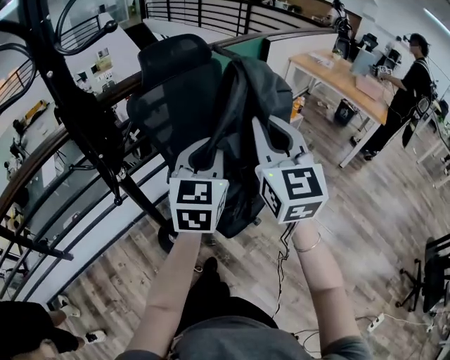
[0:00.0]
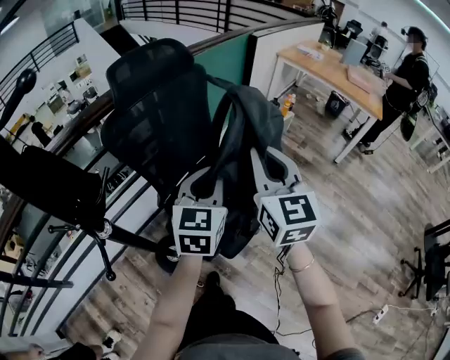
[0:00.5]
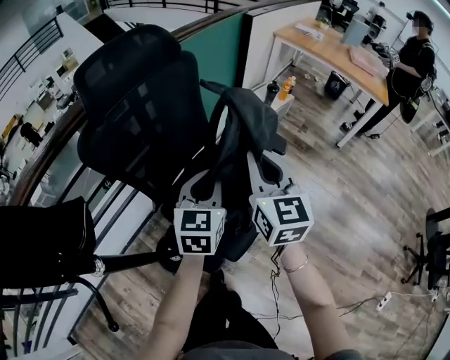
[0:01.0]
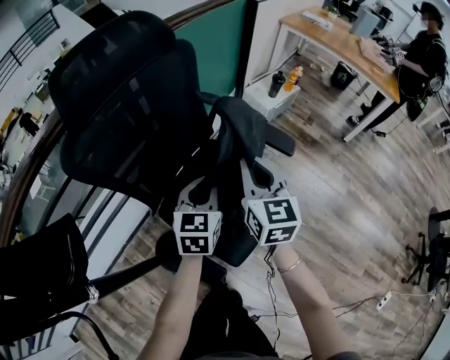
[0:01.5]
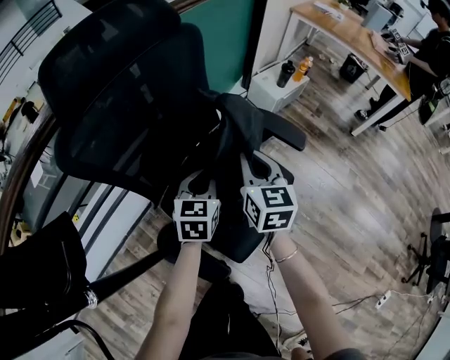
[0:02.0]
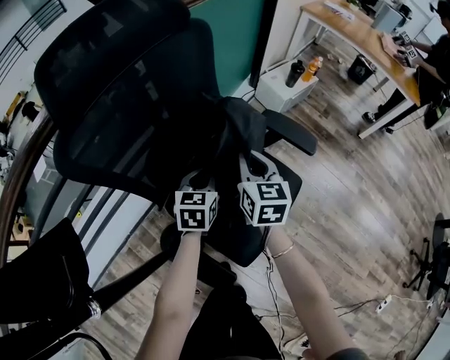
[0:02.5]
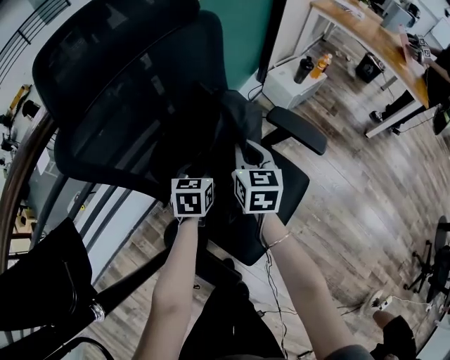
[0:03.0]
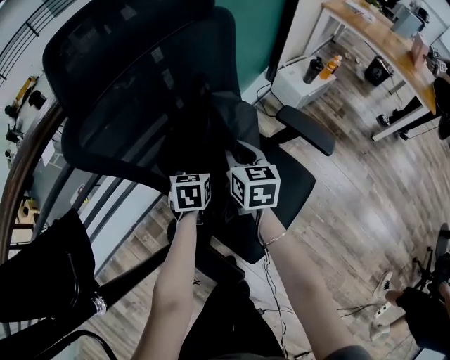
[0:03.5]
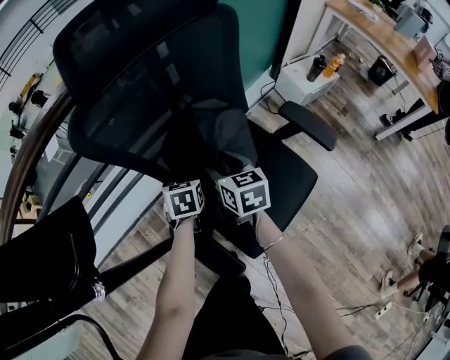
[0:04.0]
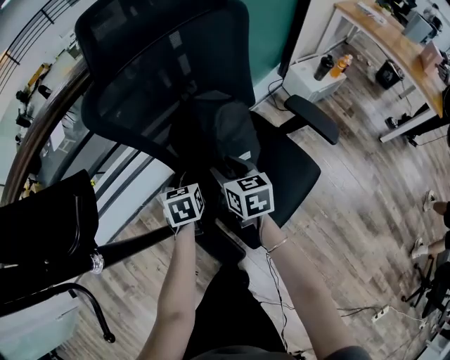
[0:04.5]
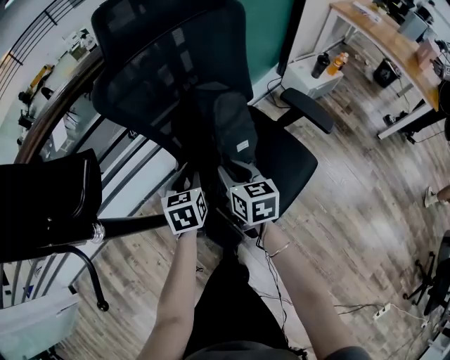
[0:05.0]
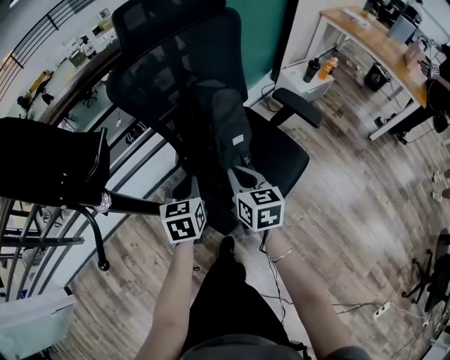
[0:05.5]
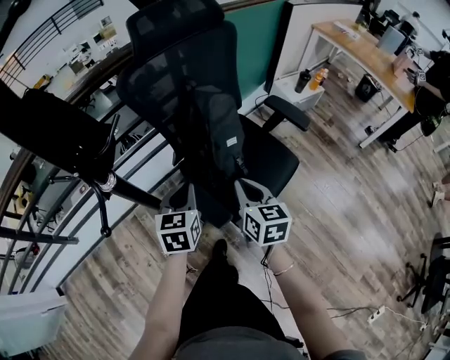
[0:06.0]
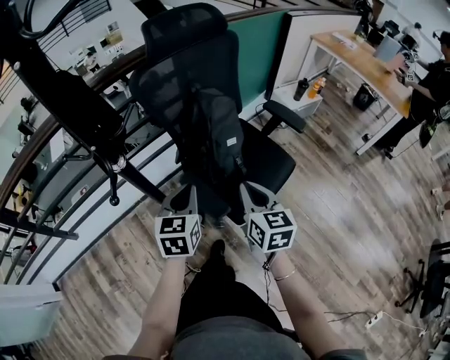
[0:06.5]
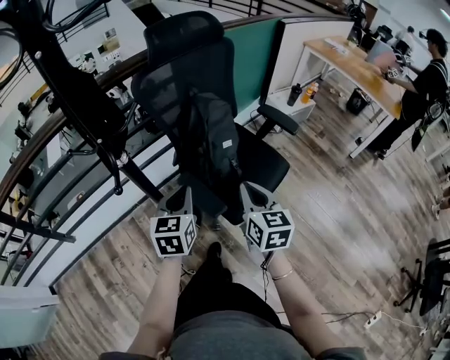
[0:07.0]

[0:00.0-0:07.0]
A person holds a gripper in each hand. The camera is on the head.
0.0 to 2.0 s: The two grippers go approximately 40 cm downward and forward. The right gripper swivels roughly 30 degrees; the left gripper turns by approximately 30 degrees.
2.0 to 3.5 s: Both grippers travel together to the left, downward and forward, about 15 cm. The left gripper swivels roughly 20 degrees.
3.5 to 5.0 s: The two grippers go approximately 15 cm backward and to the left. The right gripper opens, then closes once more.
5.0 to 7.0 s: The grippers both shift backward and upward by about 25 cm.

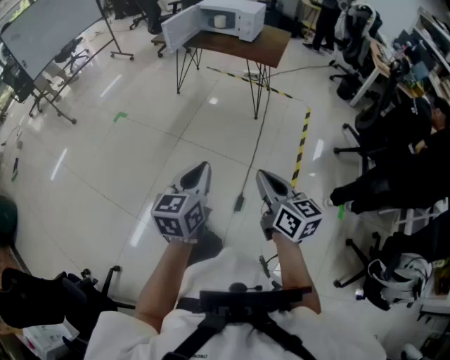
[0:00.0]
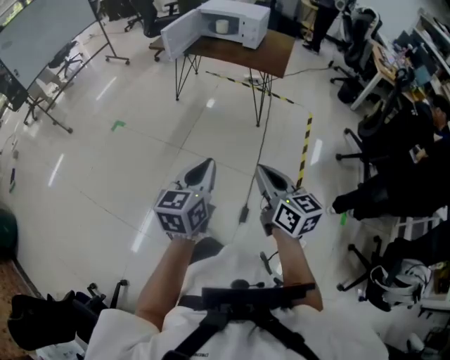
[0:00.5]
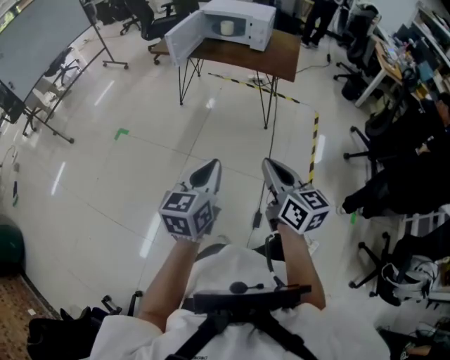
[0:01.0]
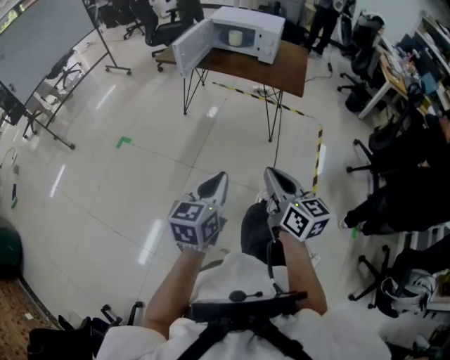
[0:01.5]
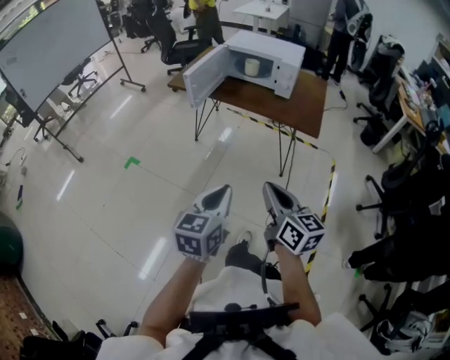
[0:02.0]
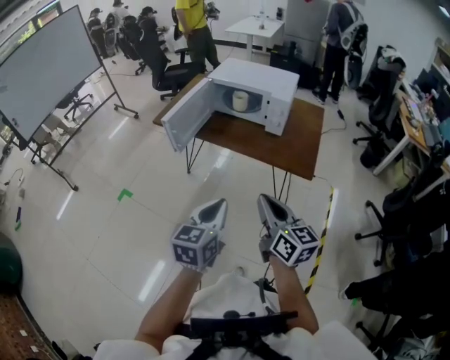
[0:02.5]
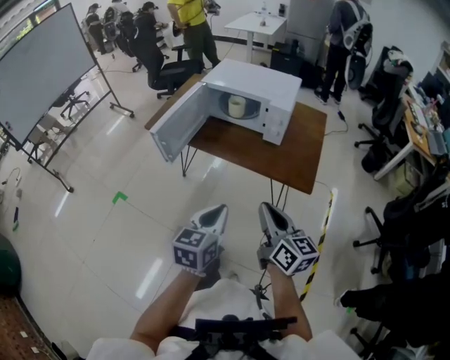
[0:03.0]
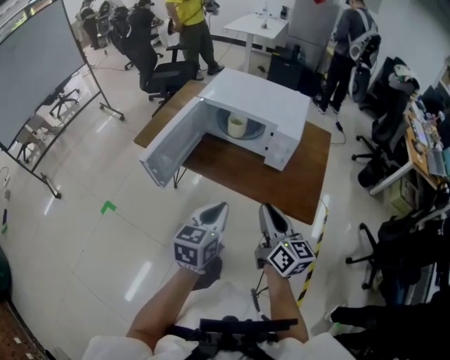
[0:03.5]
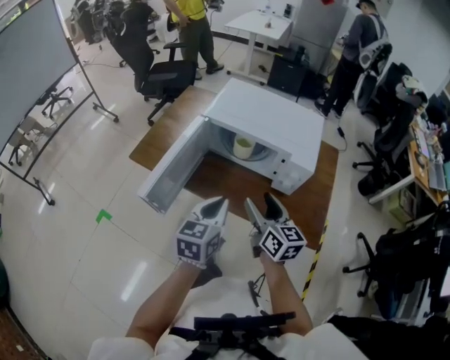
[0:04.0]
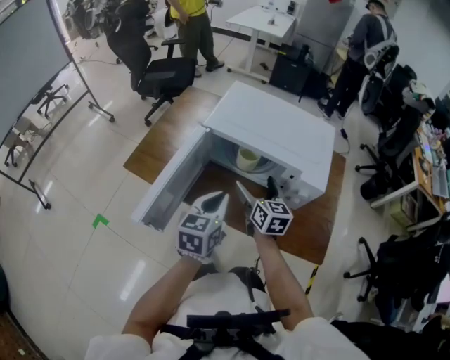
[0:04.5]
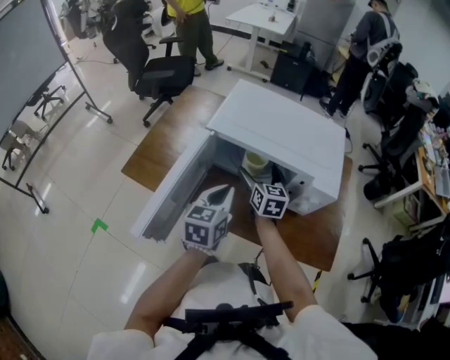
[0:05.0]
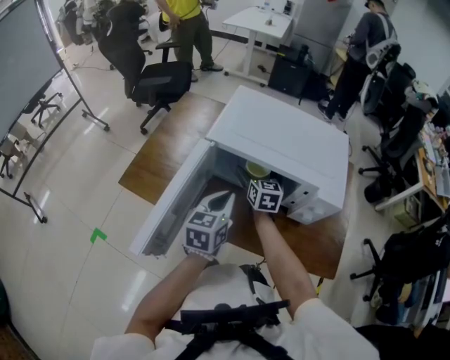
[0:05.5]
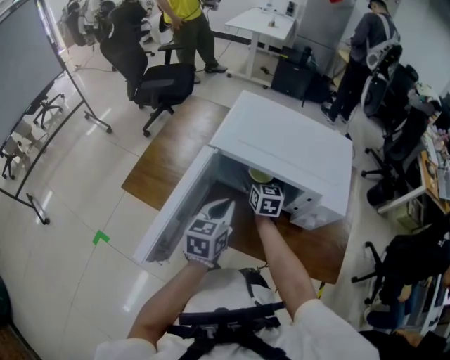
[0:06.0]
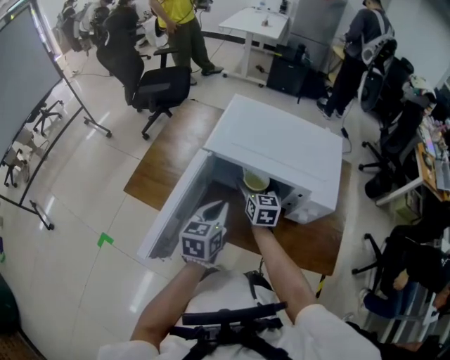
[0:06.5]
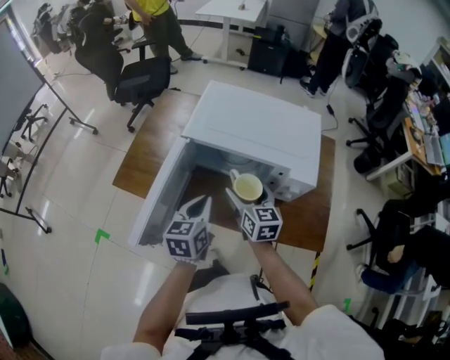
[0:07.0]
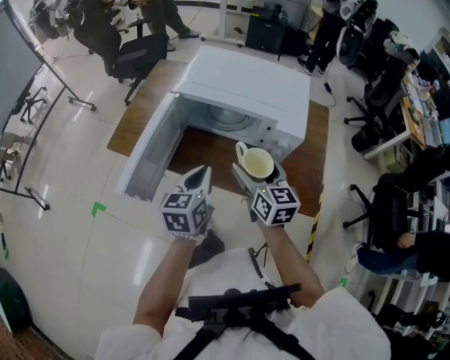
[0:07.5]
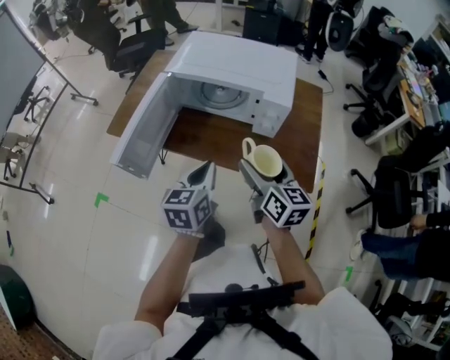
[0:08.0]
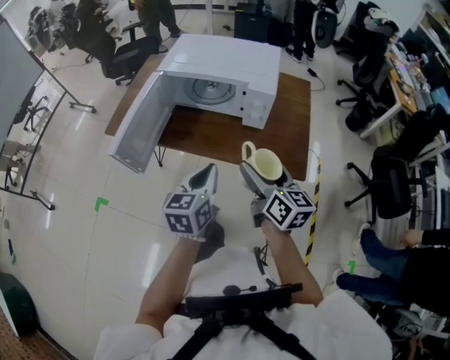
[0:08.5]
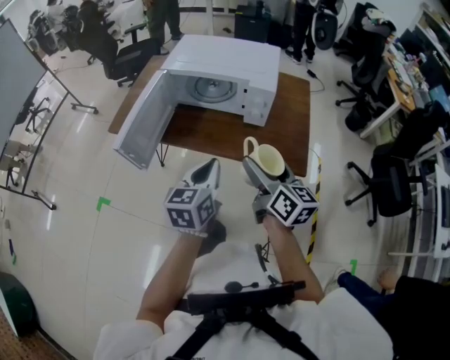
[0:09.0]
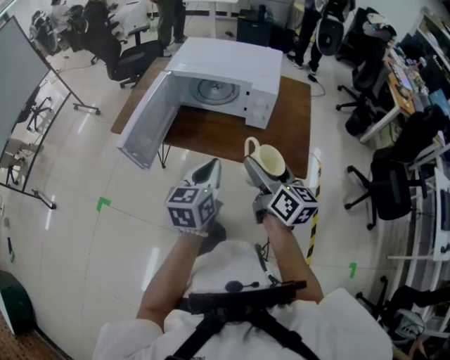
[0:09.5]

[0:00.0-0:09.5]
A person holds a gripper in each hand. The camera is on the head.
0.0 to 2.0 s: The grippers both shift forward by some 40 cm.
2.0 to 4.0 s: The pair of grippers is taken forward, approximately 60 cm. The right gripper opens.
4.0 to 5.5 s: The right gripper shifts some 30 cm forward and downward, changes its angle by about 20 degrees, and opens; the left gripper moves forward and downward, some 20 cm.
5.5 to 7.5 s: The right gripper travels backward, upward and to the right by roughly 30 cm. Meanwhile the left gripper moves backward and upward, roughly 15 cm.
7.5 to 9.5 s: Both grippers move backward and to the right, about 20 cm. The right gripper swivels about 20 degrees.

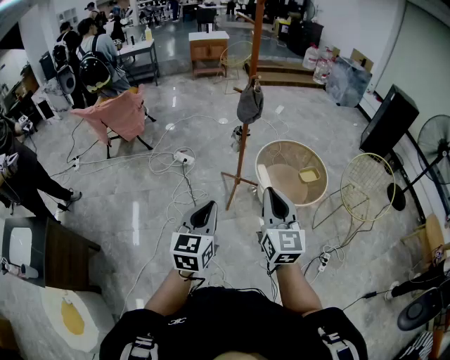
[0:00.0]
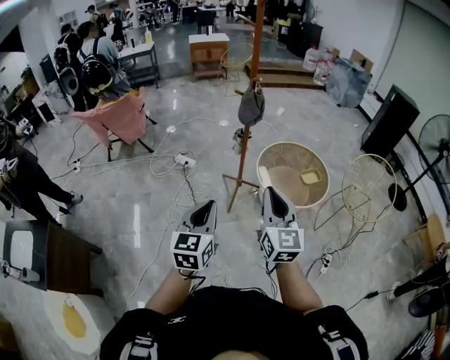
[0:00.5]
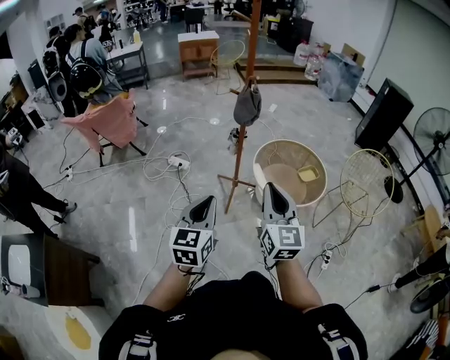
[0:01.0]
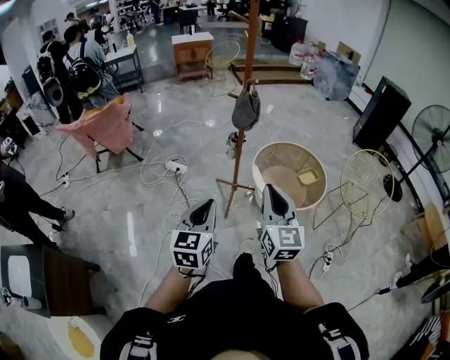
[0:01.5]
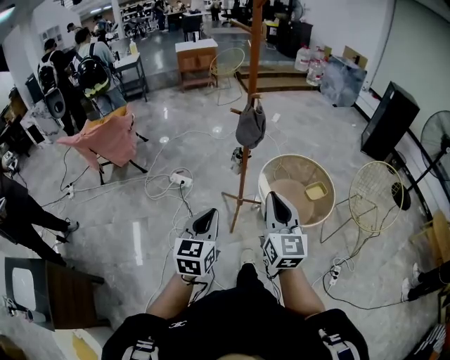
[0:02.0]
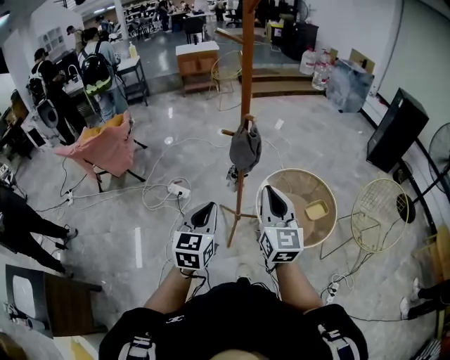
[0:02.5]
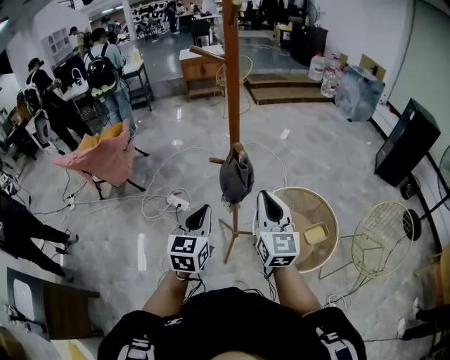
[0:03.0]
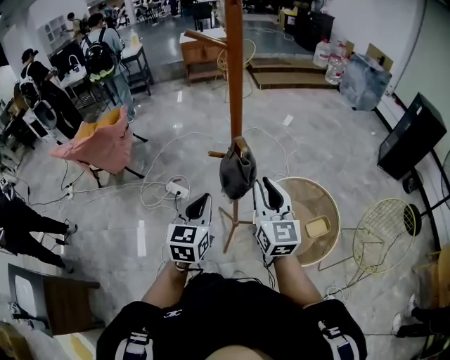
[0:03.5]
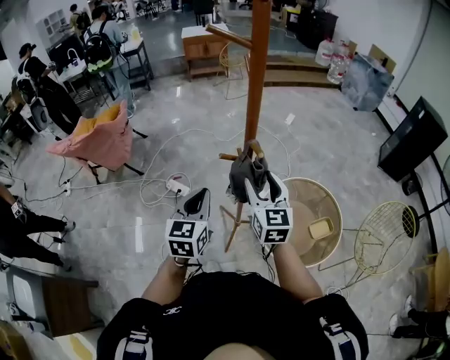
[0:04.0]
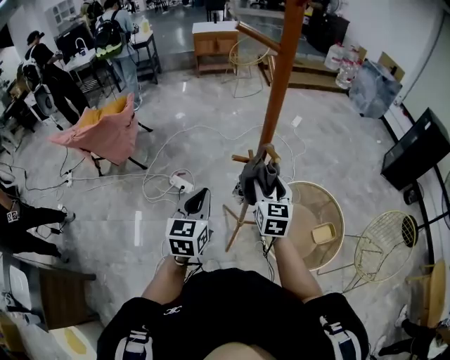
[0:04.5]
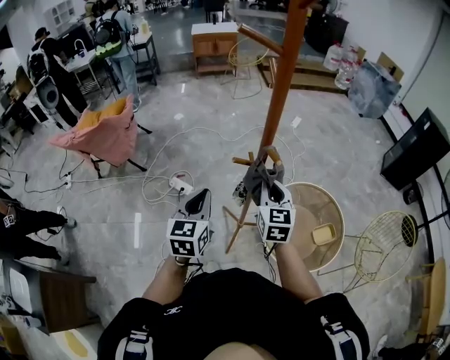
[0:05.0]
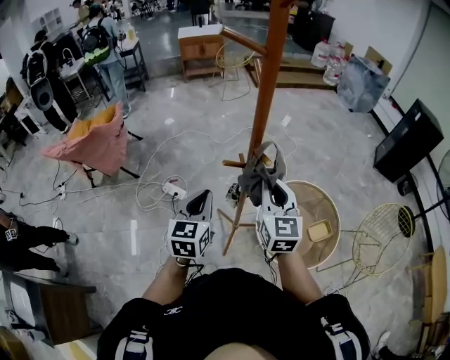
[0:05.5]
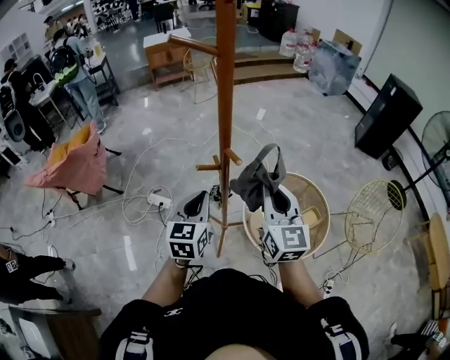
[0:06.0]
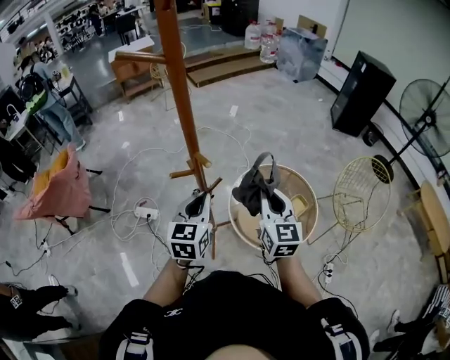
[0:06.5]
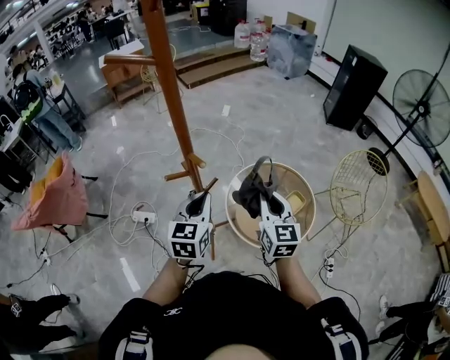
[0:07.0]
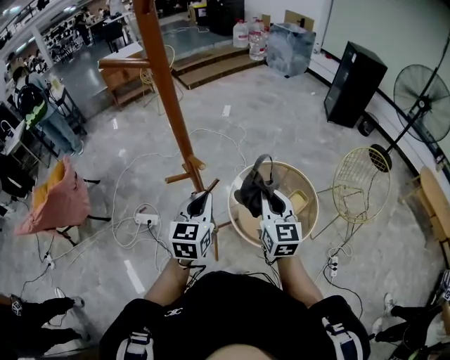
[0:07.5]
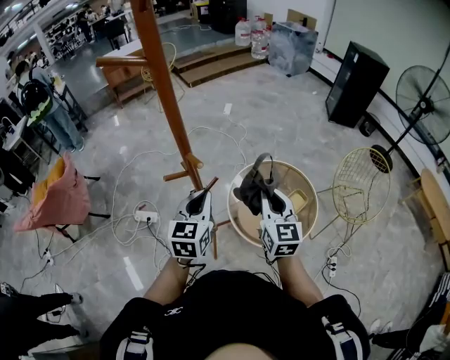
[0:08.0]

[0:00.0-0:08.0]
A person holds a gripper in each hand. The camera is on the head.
0.0 to 2.0 s: The two grippers go approximately 20 cm forward.
2.0 to 4.0 s: The pair of grippers is taken forward, some 40 cm. The right gripper opens up.
4.0 to 6.0 s: The left gripper ends up roughly 5 cm from where it was, while the right gripper shifts about 10 cm to the right and upward, and closes its fingers.
6.0 to 8.0 s: The left gripper shifts about 10 cm to the right, while the right gripper moves to the right and downward, roughly 15 cm.

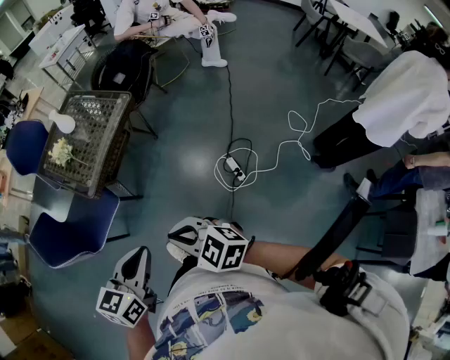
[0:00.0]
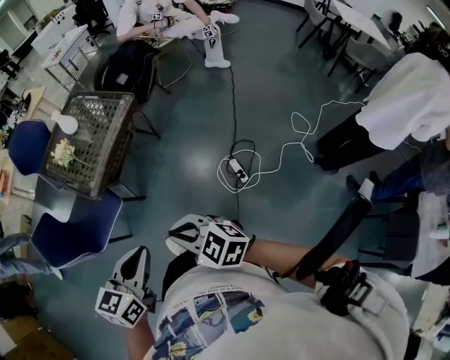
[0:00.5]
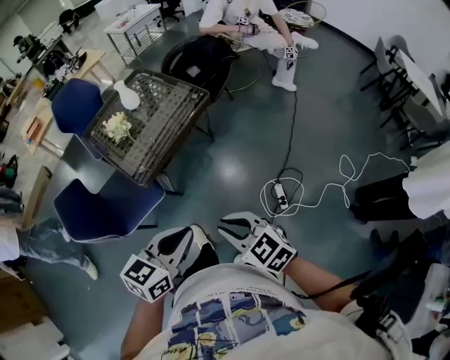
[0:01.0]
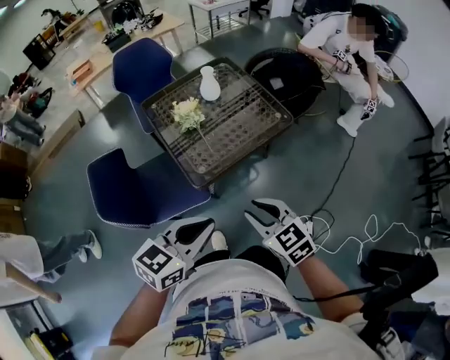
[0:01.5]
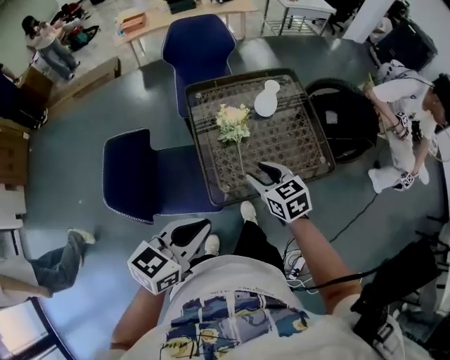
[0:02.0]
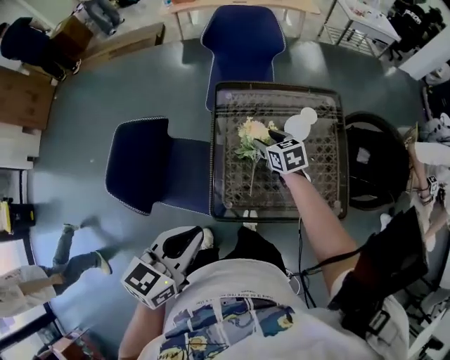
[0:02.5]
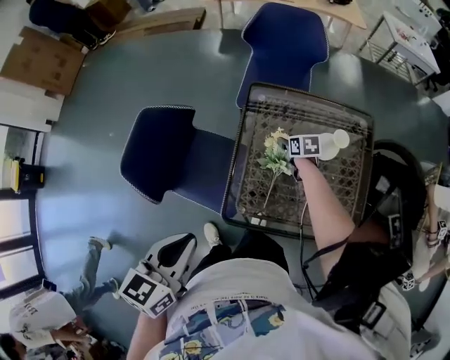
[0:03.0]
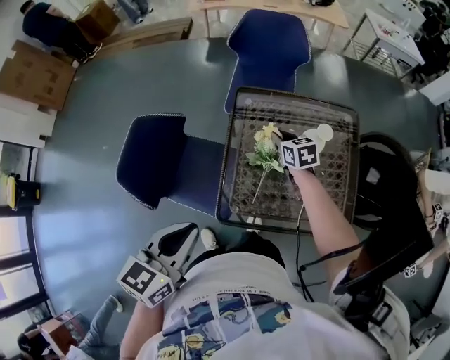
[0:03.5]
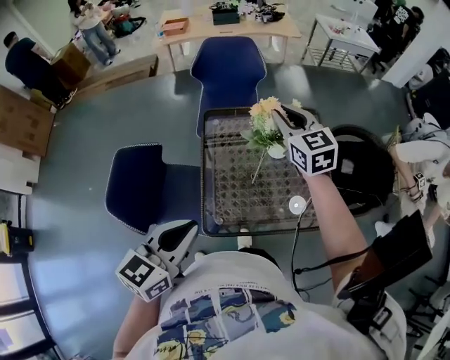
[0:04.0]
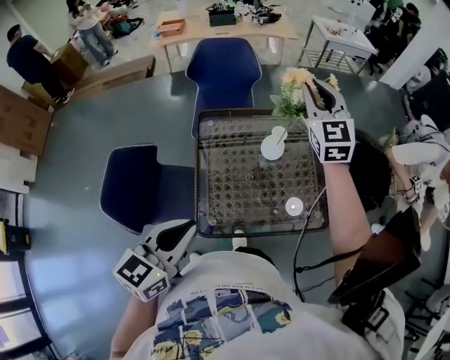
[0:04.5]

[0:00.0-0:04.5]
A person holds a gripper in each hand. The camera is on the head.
0.0 to 2.0 s: The two grippers travel together, forward and to the left, approximately 50 cm. The right gripper opens. The left gripper rotates approximately 30 degrees.
2.0 to 4.5 s: The left gripper moves approximately 15 cm, and swivels approximately 20 degrees; the right gripper shifts by about 40 cm, tilts its fingers about 30 degrees upward, and closes up.
